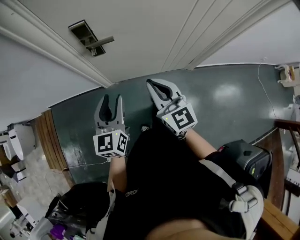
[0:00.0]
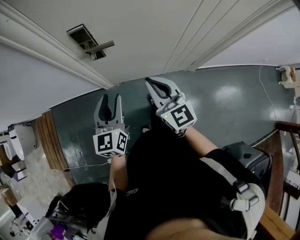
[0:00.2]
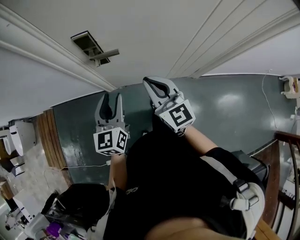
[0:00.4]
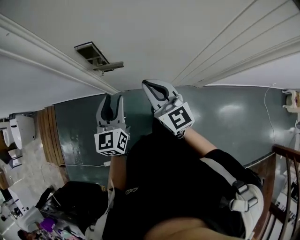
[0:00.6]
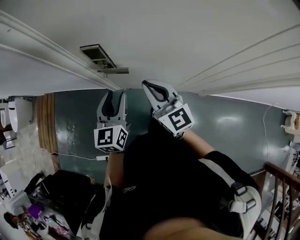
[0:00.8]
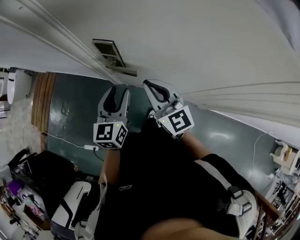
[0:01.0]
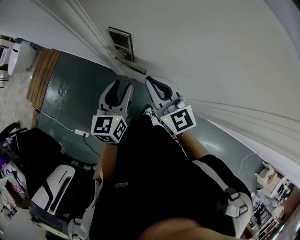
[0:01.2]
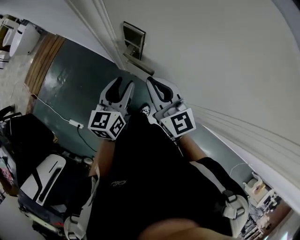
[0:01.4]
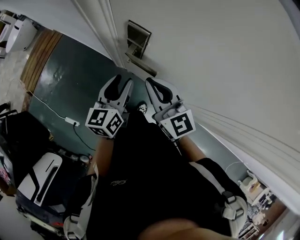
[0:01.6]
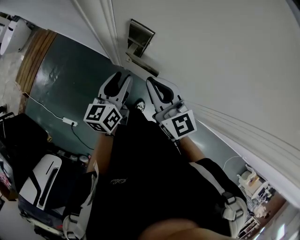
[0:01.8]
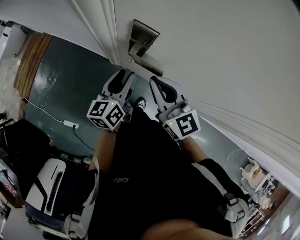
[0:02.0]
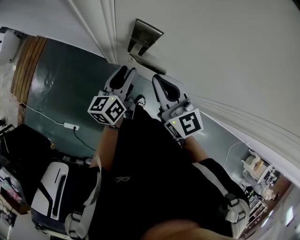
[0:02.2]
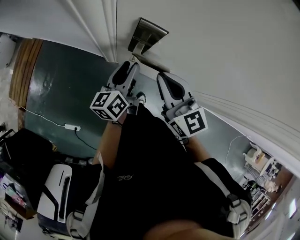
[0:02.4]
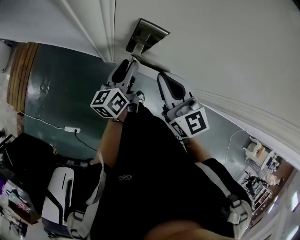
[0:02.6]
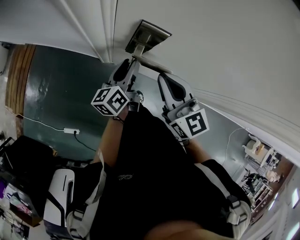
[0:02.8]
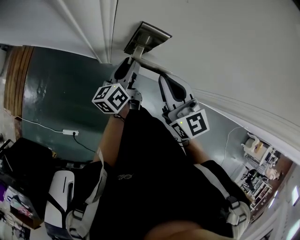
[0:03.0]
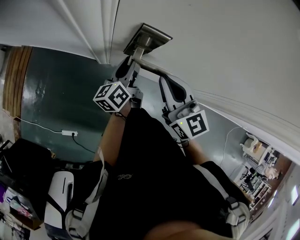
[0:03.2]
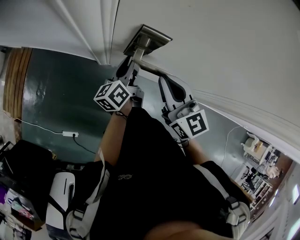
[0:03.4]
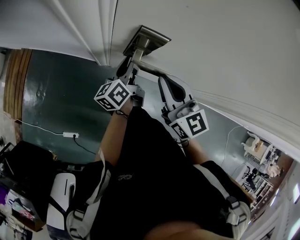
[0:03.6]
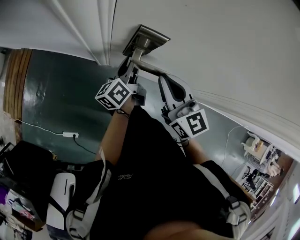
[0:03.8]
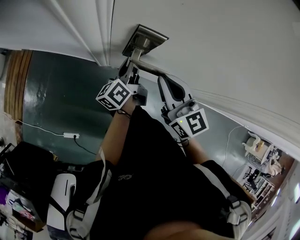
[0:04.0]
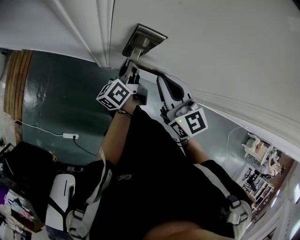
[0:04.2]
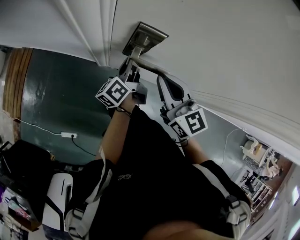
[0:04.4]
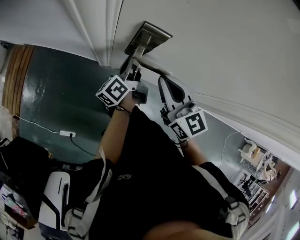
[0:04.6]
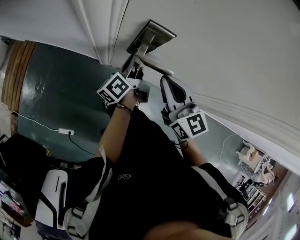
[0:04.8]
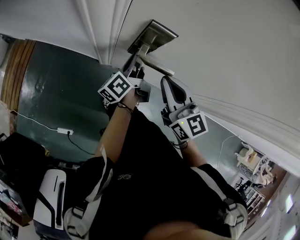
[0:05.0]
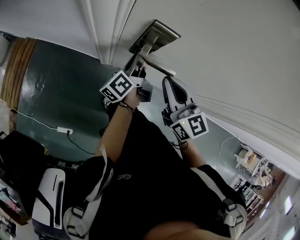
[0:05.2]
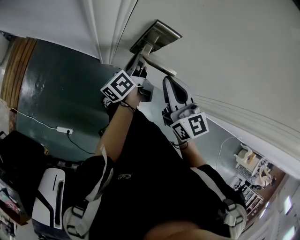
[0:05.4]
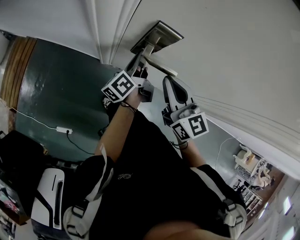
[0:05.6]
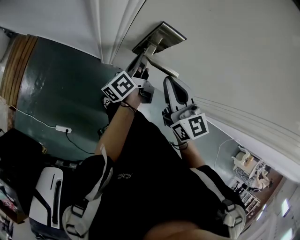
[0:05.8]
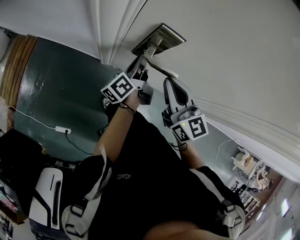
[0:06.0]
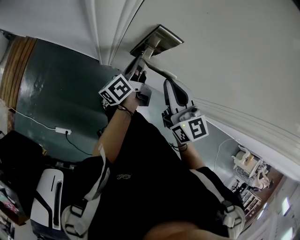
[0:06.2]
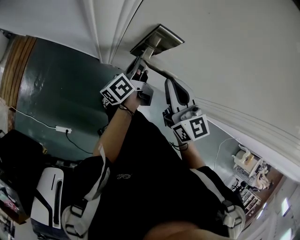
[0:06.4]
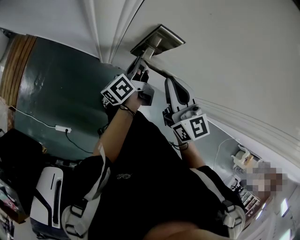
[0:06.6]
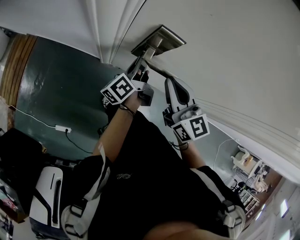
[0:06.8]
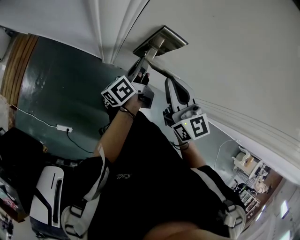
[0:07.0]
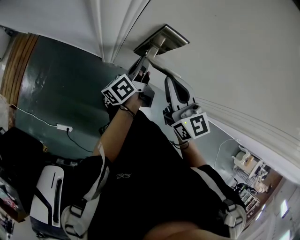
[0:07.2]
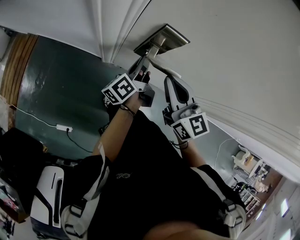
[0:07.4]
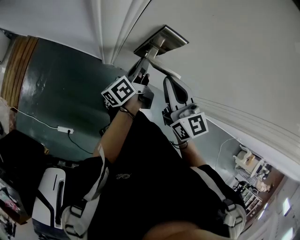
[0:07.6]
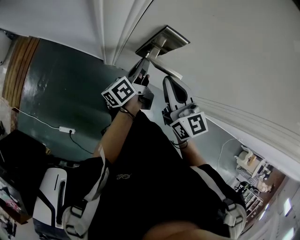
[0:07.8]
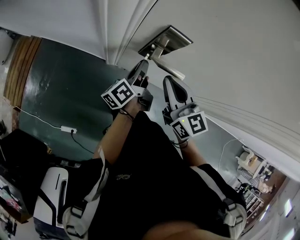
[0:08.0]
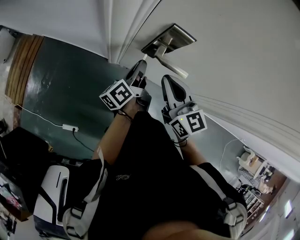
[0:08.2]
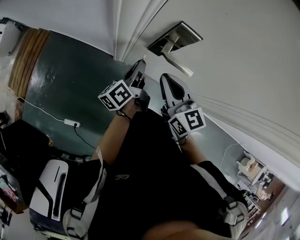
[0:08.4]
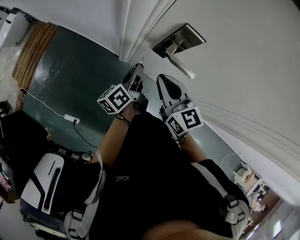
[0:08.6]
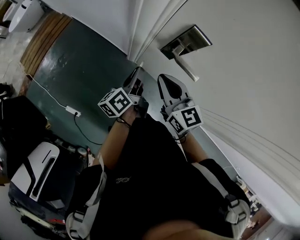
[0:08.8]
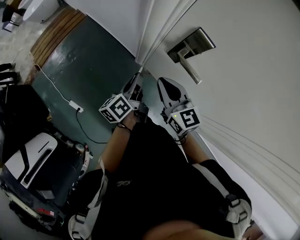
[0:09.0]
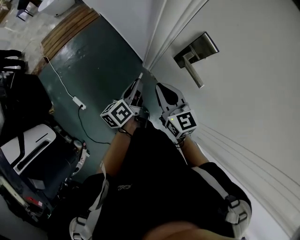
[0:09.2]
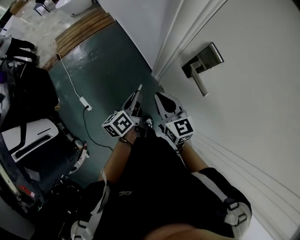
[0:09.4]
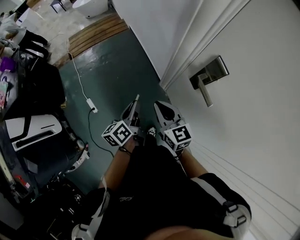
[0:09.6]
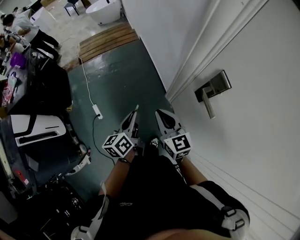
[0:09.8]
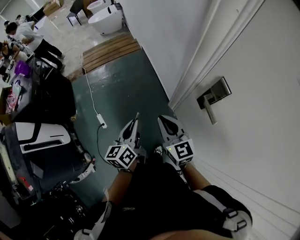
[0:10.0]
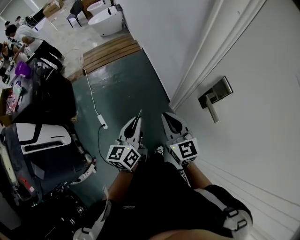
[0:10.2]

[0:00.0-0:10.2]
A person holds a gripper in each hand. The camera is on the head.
0:00.0 to 0:01.4: The left gripper changes place by roughly 20 cm, and swivels about 30 degrees; the right gripper shifts by approximately 25 cm, and swivels roughly 40 degrees.
0:01.4 to 0:03.0: The left gripper shifts roughly 15 cm forward and downward, and rotates about 30 degrees.
0:03.0 to 0:04.4: The left gripper closes up.
0:04.4 to 0:05.8: The grippers stay close to where they were, moving slightly.
0:05.8 to 0:07.2: Neither gripper changes place.
0:07.2 to 0:08.8: The left gripper is displaced to the left and backward by roughly 15 cm, and changes its angle by about 20 degrees; the right gripper shifts about 10 cm to the left.
0:08.8 to 0:10.2: The left gripper moves some 25 cm, and changes its angle by some 50 degrees. The right gripper shifts by some 15 cm, and swivels about 30 degrees.

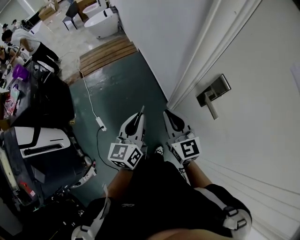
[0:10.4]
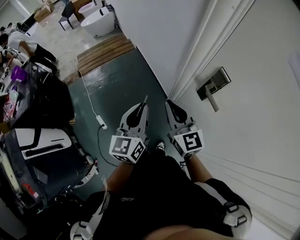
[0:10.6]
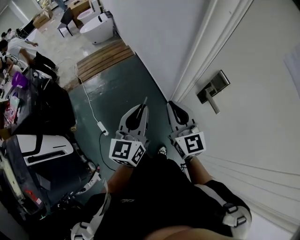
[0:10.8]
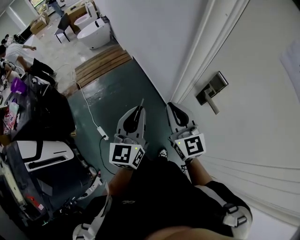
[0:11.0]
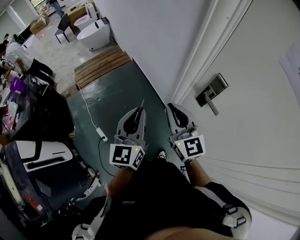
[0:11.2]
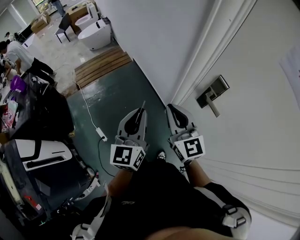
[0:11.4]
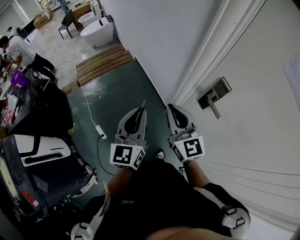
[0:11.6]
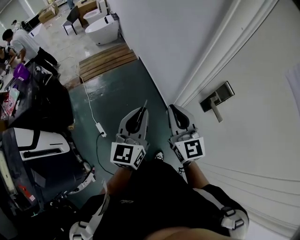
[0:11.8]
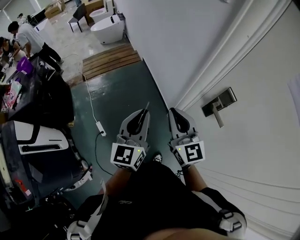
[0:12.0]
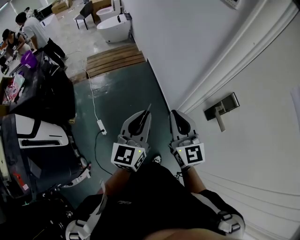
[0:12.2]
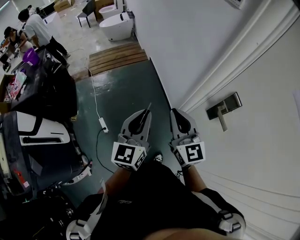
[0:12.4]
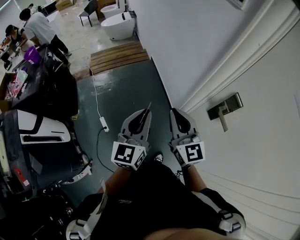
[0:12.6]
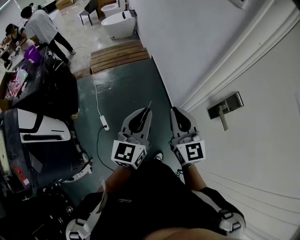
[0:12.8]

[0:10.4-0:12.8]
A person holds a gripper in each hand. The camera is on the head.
0:10.4 to 0:11.6: The two grippers go approximately 10 cm upward.
0:11.6 to 0:12.8: The grippers move only a little.

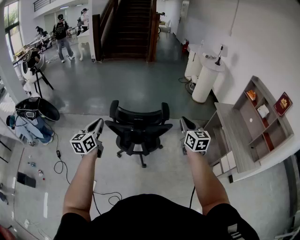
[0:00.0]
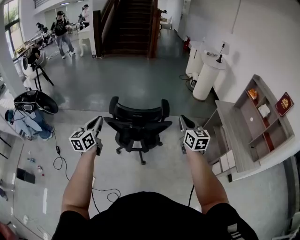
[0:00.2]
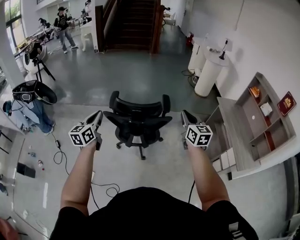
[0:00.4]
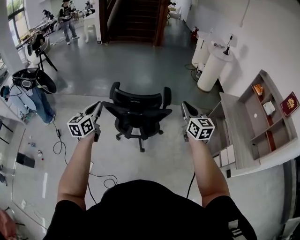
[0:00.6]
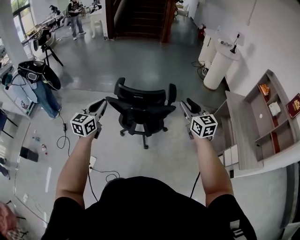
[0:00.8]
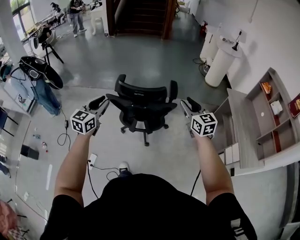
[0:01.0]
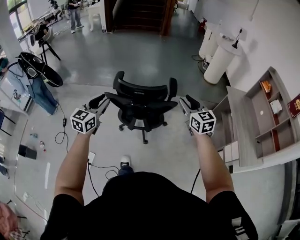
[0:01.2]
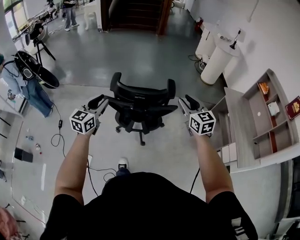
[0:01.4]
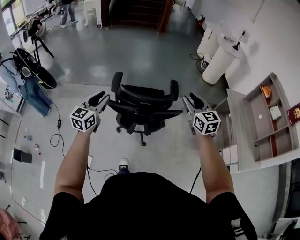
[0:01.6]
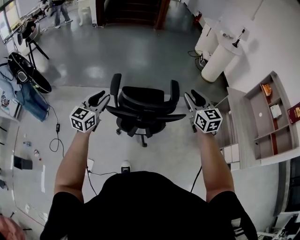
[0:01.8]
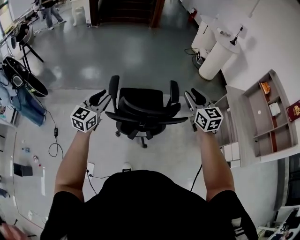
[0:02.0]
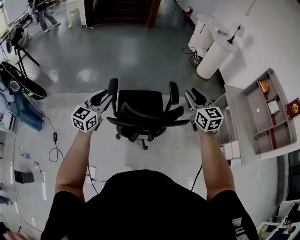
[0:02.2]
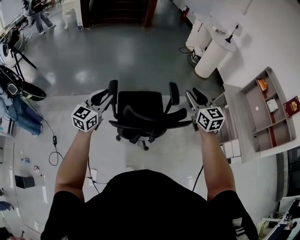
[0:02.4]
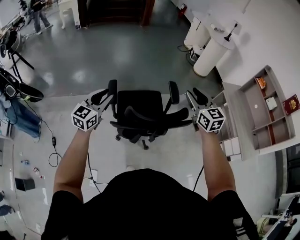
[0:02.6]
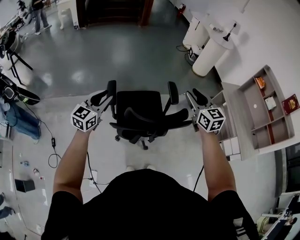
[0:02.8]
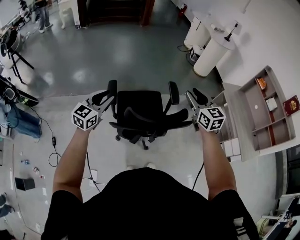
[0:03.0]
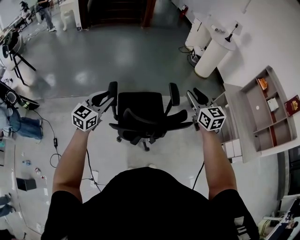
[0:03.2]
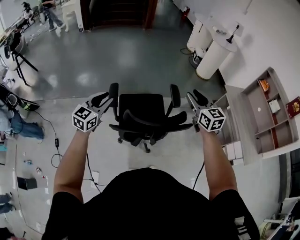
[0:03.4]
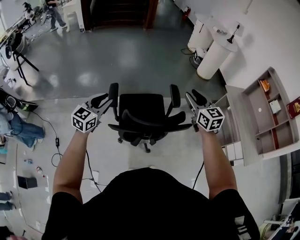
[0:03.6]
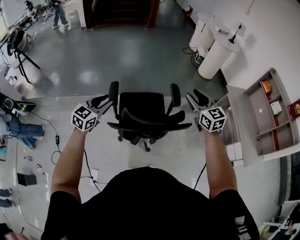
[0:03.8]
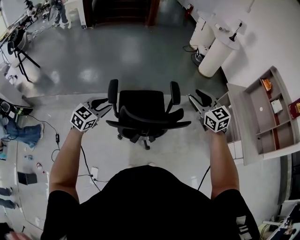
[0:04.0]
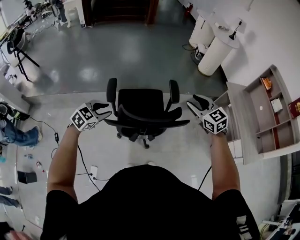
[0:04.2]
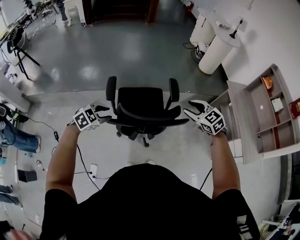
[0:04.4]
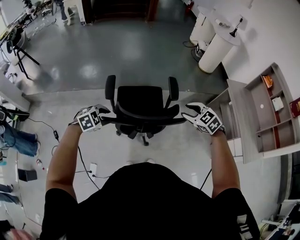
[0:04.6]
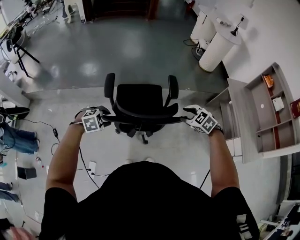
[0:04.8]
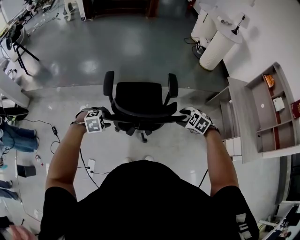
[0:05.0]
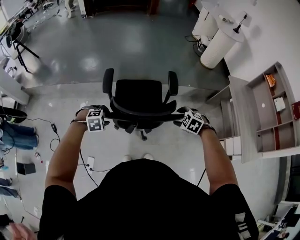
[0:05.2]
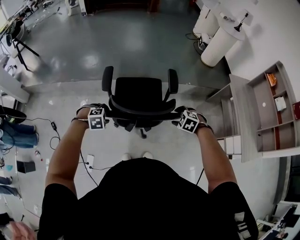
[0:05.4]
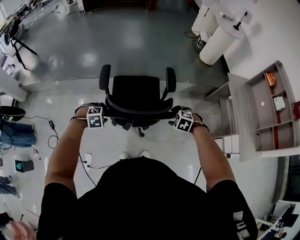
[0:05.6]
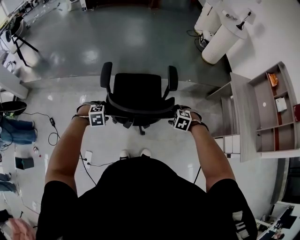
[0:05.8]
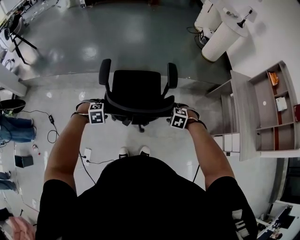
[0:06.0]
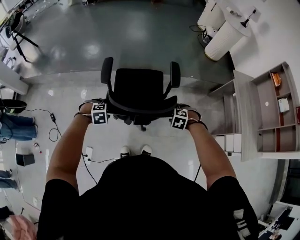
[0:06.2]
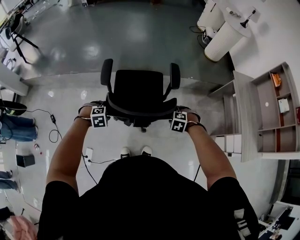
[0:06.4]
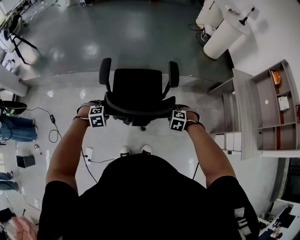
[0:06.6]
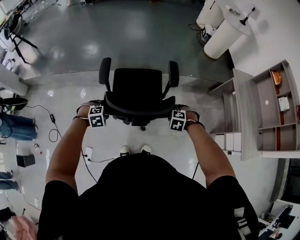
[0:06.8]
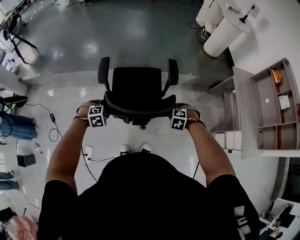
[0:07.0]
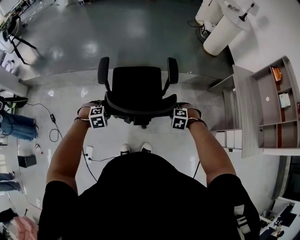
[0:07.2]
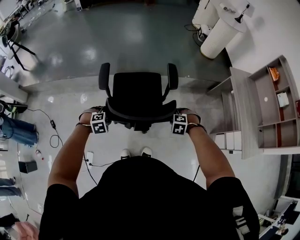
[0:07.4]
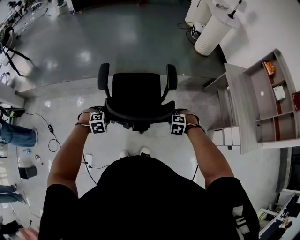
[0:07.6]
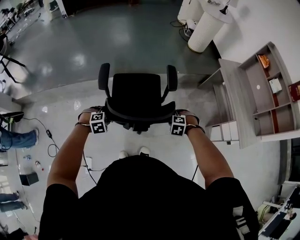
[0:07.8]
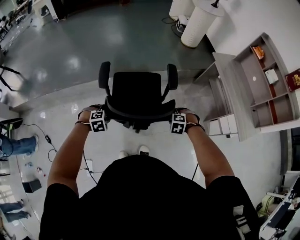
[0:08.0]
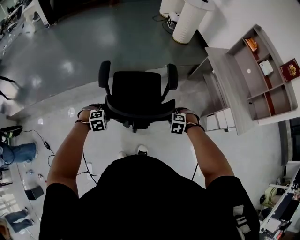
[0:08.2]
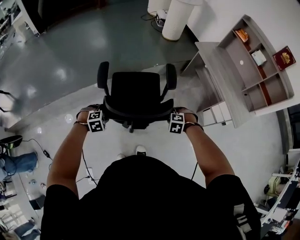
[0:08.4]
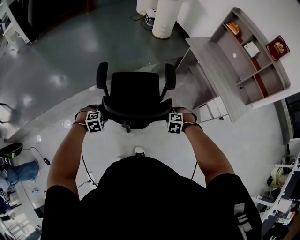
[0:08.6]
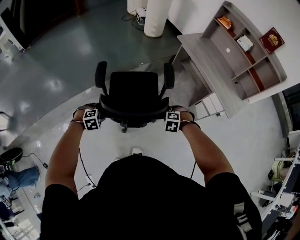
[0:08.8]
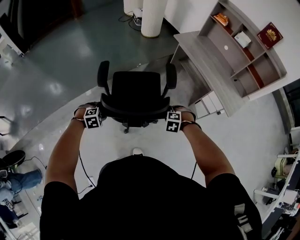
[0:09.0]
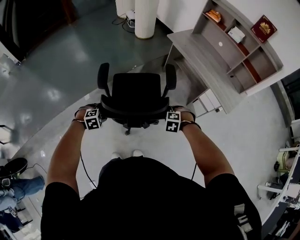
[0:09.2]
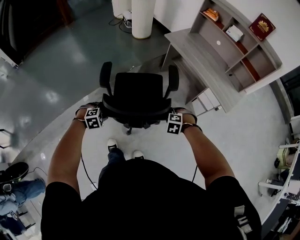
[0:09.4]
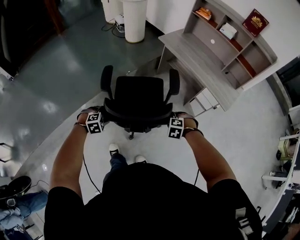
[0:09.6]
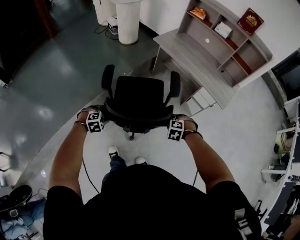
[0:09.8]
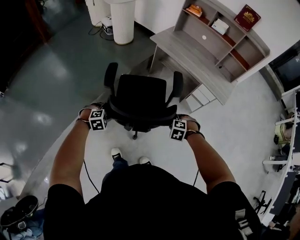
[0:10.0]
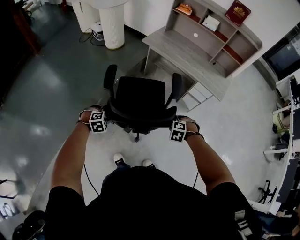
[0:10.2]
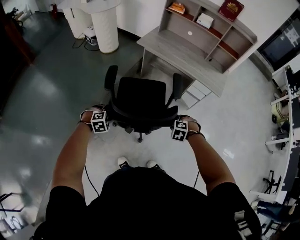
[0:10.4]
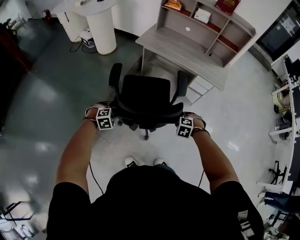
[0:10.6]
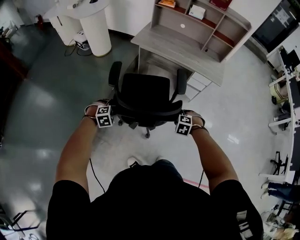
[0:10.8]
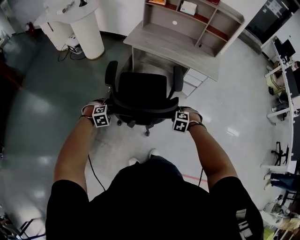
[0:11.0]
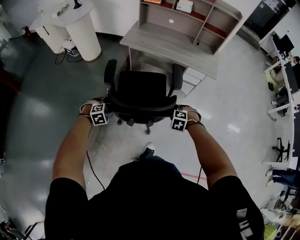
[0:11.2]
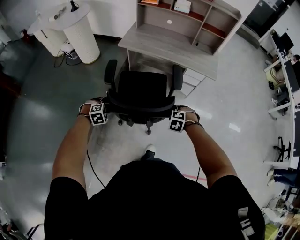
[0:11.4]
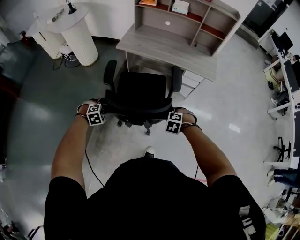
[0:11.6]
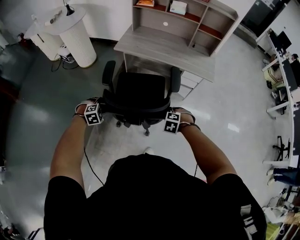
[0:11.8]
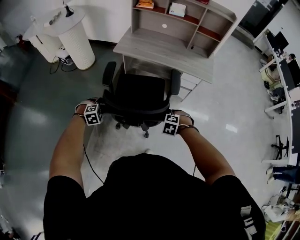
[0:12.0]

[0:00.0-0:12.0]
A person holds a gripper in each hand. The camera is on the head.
0:00.0 to 0:01.6: The left gripper goes some 10 cm forward and downward, and opens. Meanwhile the right gripper moves forward, about 10 cm, and opens up.
0:01.6 to 0:03.0: The grippers both shift forward and to the left by some 15 cm.
0:03.0 to 0:04.4: The left gripper travels downward, backward and to the right by roughly 15 cm, and points its fingers some 40 degrees further downward. The right gripper is displaced downward and to the right by approximately 10 cm, and swivels some 30 degrees.
0:04.4 to 0:06.0: The grippers both shift downward by approximately 20 cm. The right gripper tilts its fingers approximately 40 degrees downward. The left gripper angles its fingers downward, by some 30 degrees.
0:06.0 to 0:07.6: The right gripper changes place by some 5 cm, and closes.
0:07.6 to 0:09.0: The right gripper ends up roughly 20 cm from where it was, and turns by about 30 degrees, while the left gripper ends up approximately 25 cm from where it was, and swivels roughly 30 degrees.
0:09.0 to 0:10.4: The right gripper changes its angle by about 30 degrees, while the left gripper ends up some 20 cm from where it was, and swivels some 30 degrees.
0:10.4 to 0:12.0: The right gripper changes place by approximately 10 cm. Meanwhile the left gripper changes place by approximately 20 cm.
